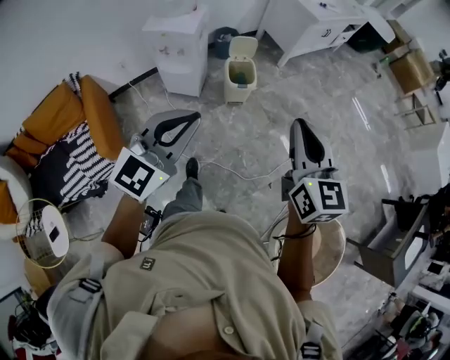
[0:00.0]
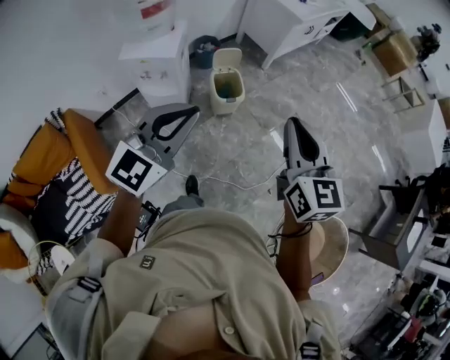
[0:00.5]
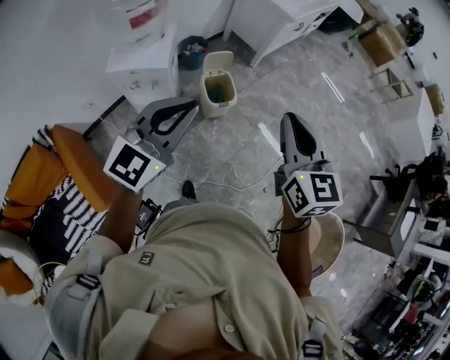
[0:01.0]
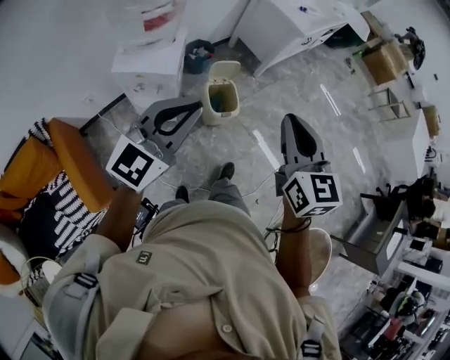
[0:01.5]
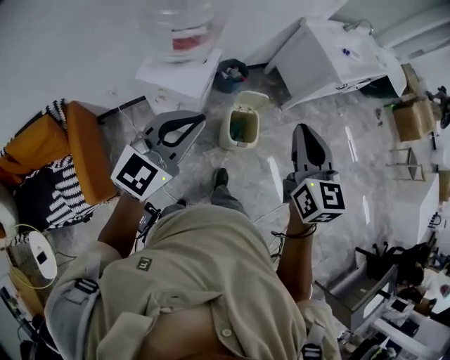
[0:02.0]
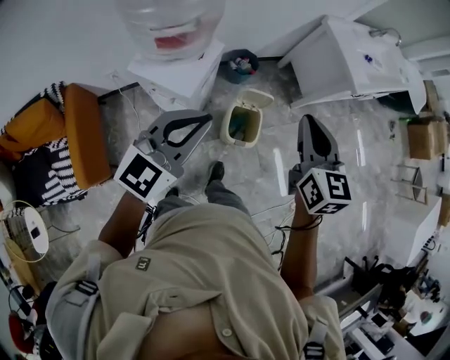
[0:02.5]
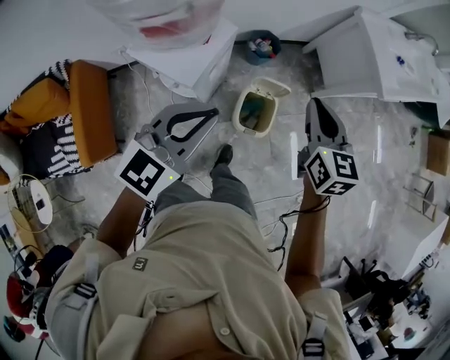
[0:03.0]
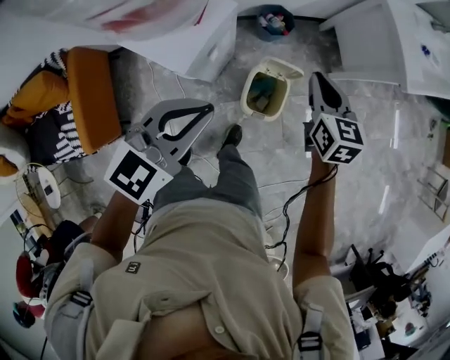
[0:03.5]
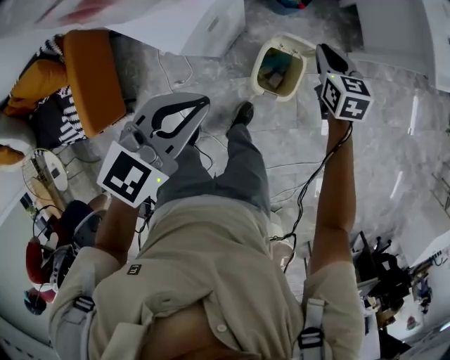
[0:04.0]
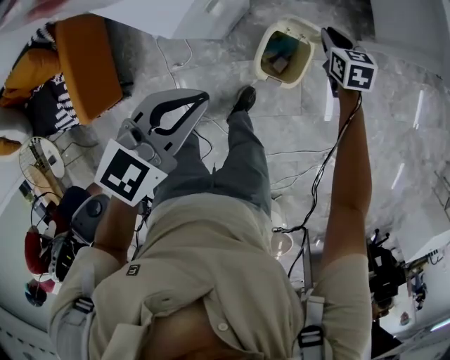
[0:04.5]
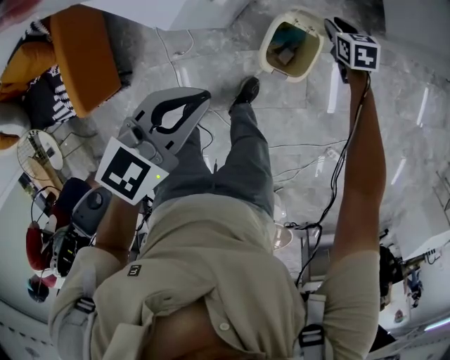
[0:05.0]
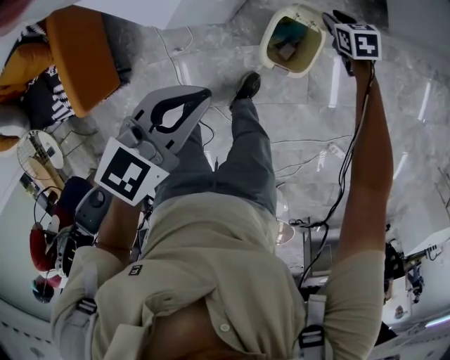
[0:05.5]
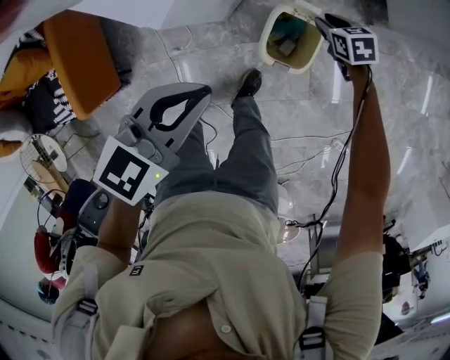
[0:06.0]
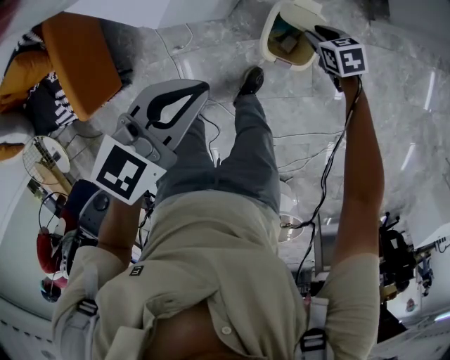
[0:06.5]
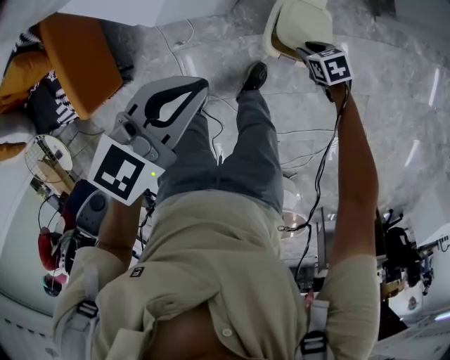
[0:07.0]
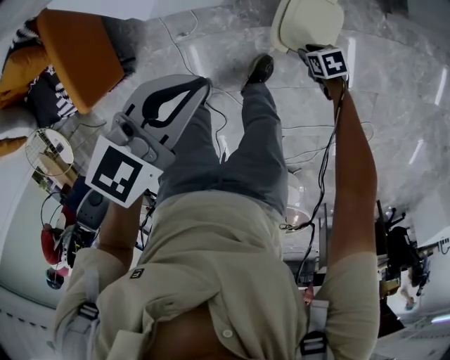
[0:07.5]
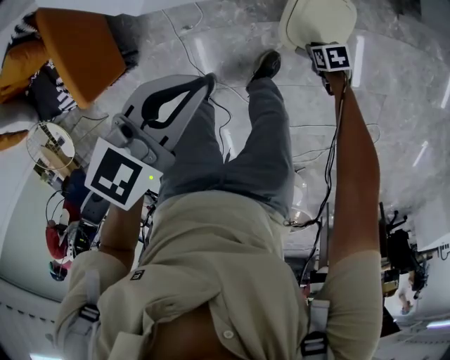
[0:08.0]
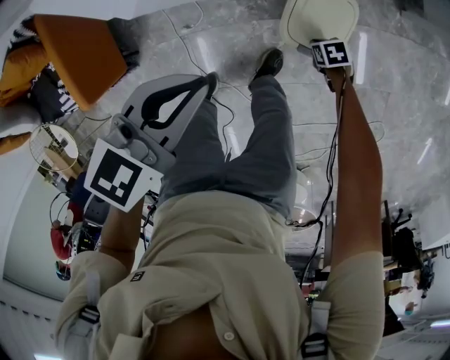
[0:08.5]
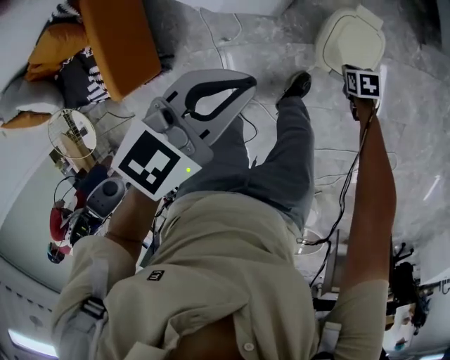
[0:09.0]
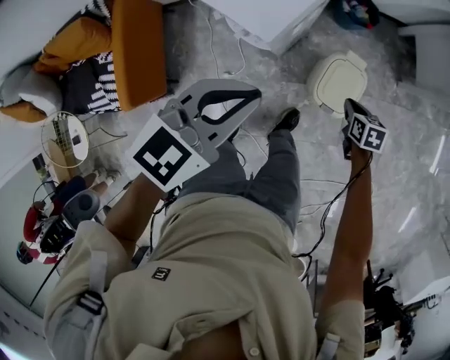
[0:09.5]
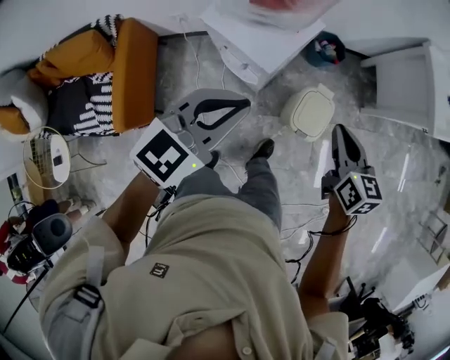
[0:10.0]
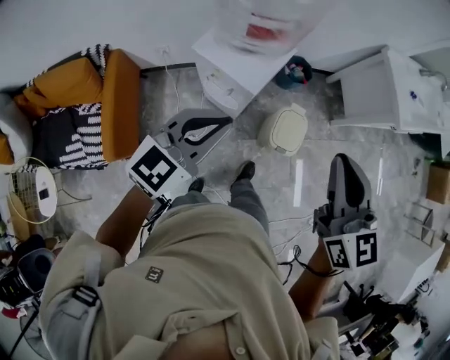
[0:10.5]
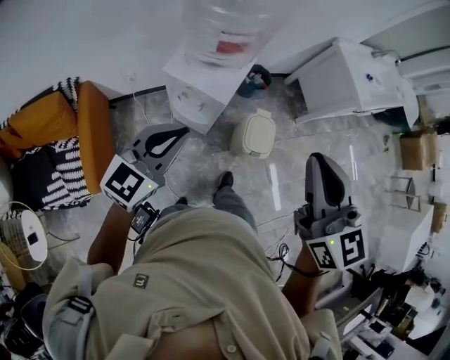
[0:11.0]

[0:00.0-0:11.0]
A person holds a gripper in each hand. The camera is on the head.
0:00.0 to 0:02.0: Both grippers are carried forward and to the left, approximately 40 cm.
0:02.0 to 0:03.5: The left gripper heads forward, downward and to the right, covering some 25 cm, and changes its angle by approximately 20 degrees; the right gripper shifts some 40 cm forward and downward, and swivels approximately 30 degrees.
0:03.5 to 0:05.5: The right gripper travels downward by approximately 35 cm, turns by some 40 degrees, and opens. Meanwhile the left gripper travels downward by about 15 cm.
0:05.5 to 0:07.5: The right gripper moves approximately 25 cm, and turns by approximately 20 degrees.
0:07.5 to 0:09.0: The right gripper closes its fingers.
0:09.0 to 0:11.0: The right gripper travels upward by approximately 80 cm, and angles its fingers upward, by roughly 60 degrees. Meanwhile the left gripper travels upward by approximately 30 cm, and points its fingers approximately 30 degrees further upward.

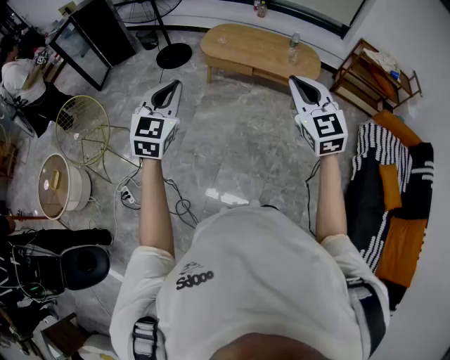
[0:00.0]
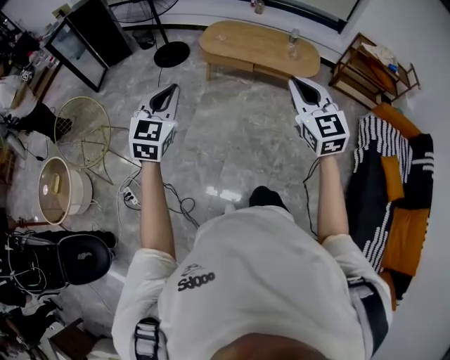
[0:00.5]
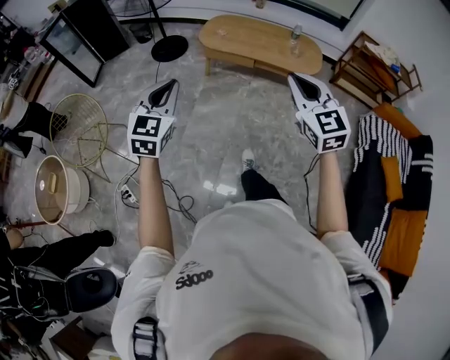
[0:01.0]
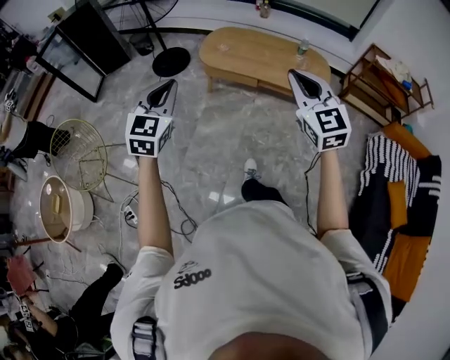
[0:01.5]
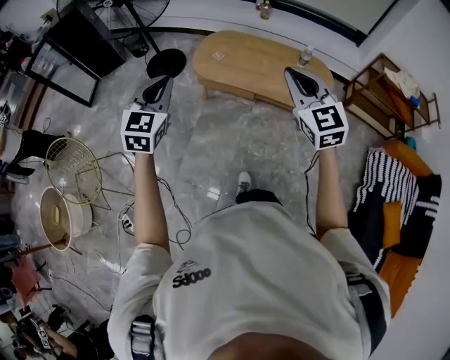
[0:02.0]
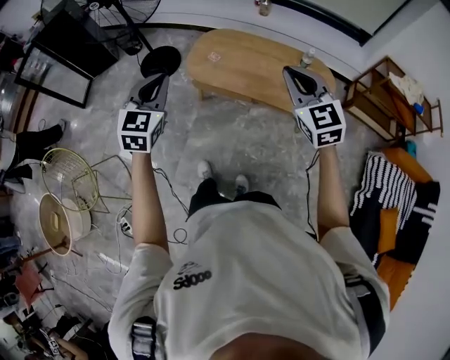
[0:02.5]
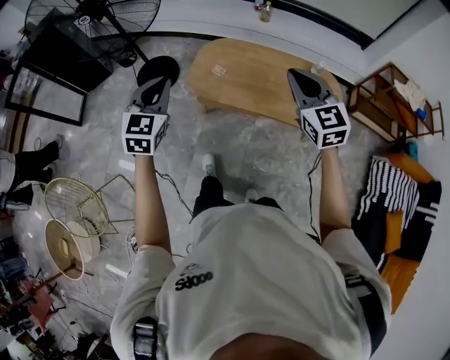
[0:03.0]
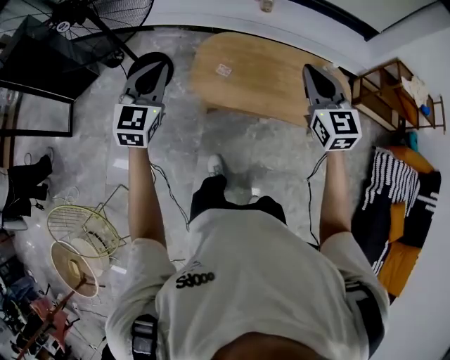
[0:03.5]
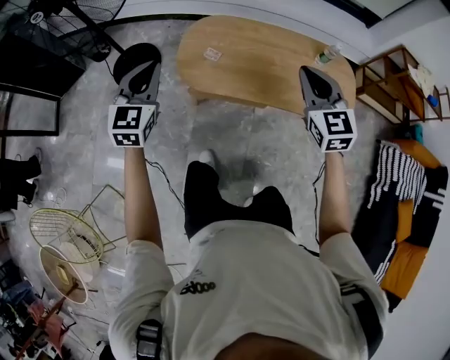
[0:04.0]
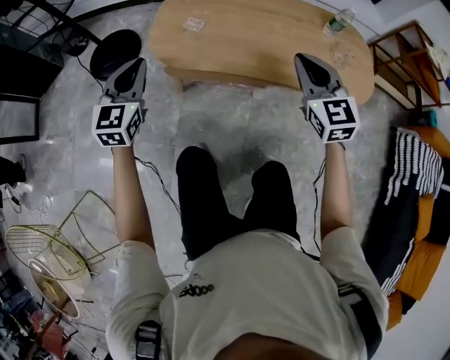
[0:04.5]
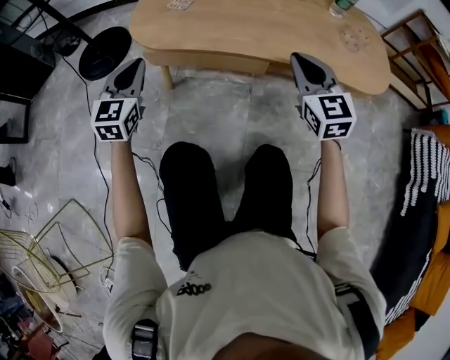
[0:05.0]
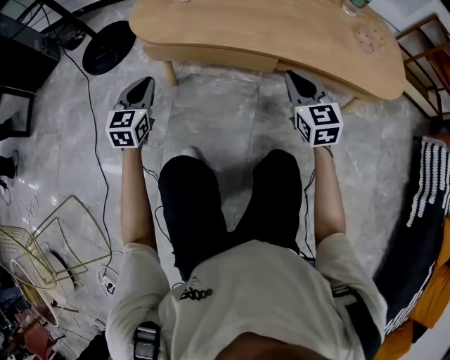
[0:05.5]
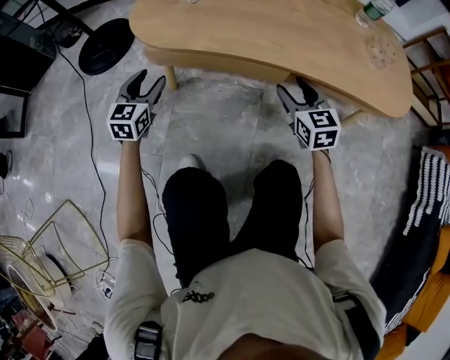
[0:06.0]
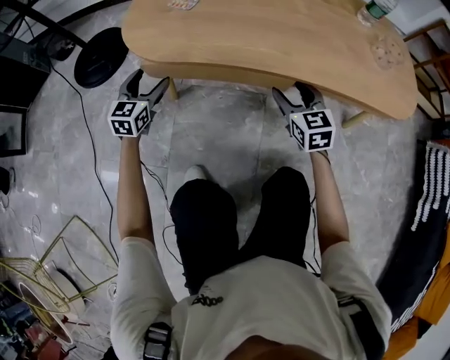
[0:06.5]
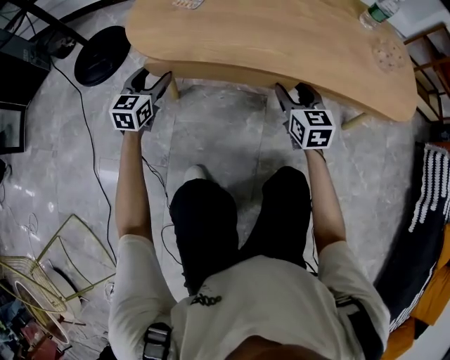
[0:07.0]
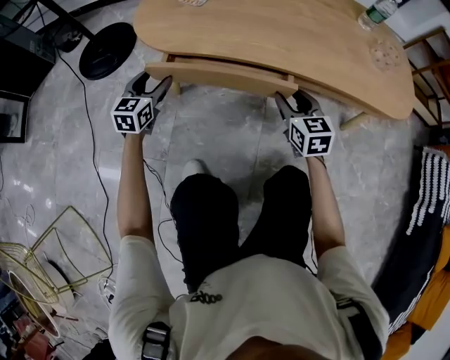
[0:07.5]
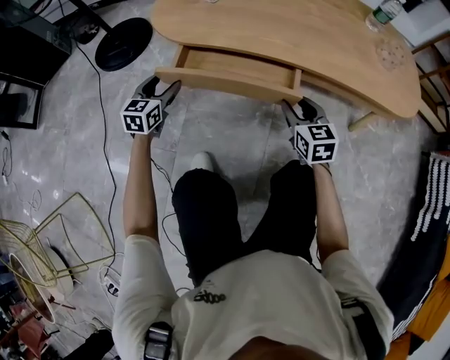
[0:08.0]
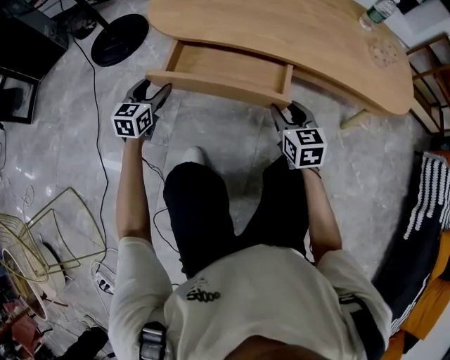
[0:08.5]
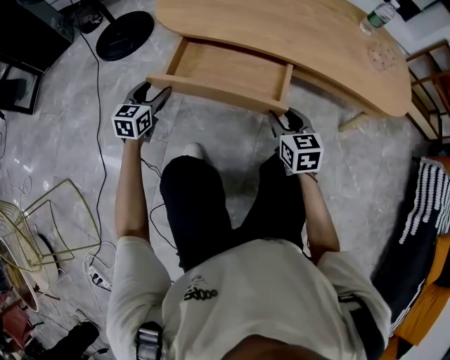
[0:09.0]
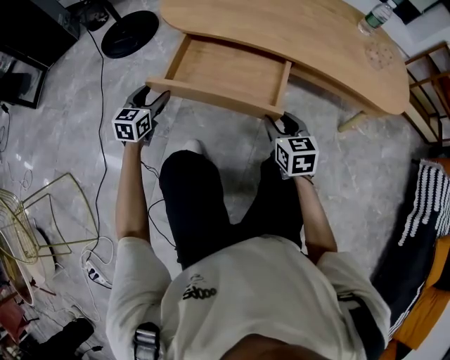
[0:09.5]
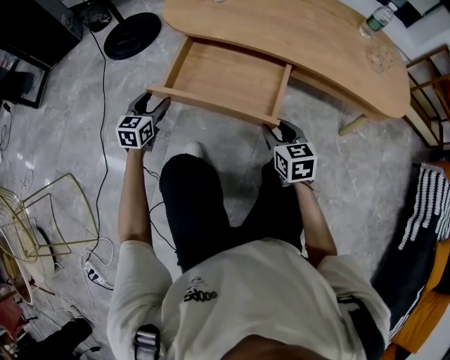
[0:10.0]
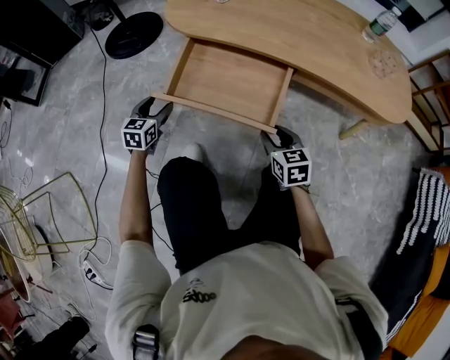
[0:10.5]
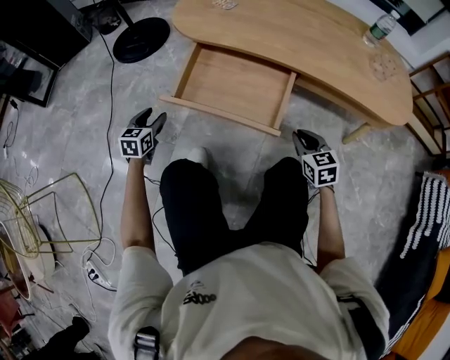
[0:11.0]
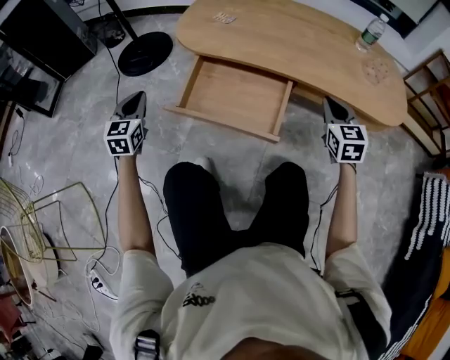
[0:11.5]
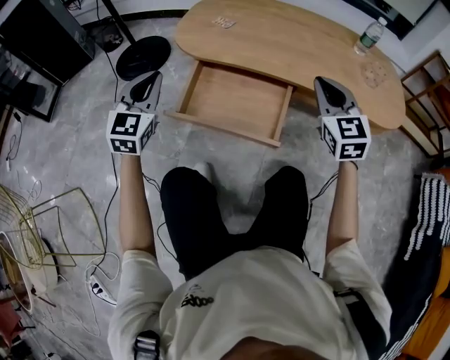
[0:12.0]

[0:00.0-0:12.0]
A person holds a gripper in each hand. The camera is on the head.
0:00.0 to 0:02.0: Both grippers are carried forward, about 40 cm.
0:02.0 to 0:04.0: The grippers both shift forward and downward by roughly 40 cm.
0:04.0 to 0:06.0: The grippers both shift downward by some 50 cm. The right gripper opens its fingers, while the left gripper opens its fingers.
0:06.0 to 0:08.0: The right gripper moves backward, about 5 cm. The left gripper goes forward and returns, some 5 cm each way.
0:08.0 to 0:10.0: The grippers both shift backward by roughly 10 cm.
0:10.0 to 0:12.0: The two grippers go approximately 25 cm upward. The right gripper turns by some 30 degrees, and closes, while the left gripper changes its angle by some 30 degrees, and closes.

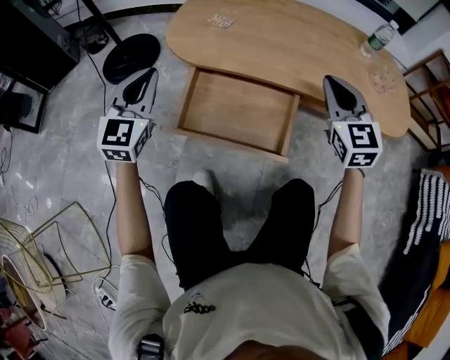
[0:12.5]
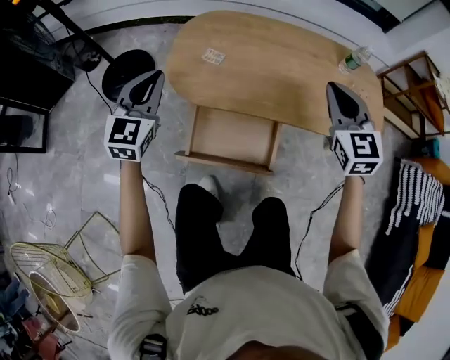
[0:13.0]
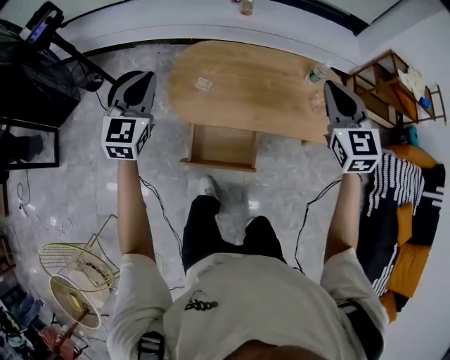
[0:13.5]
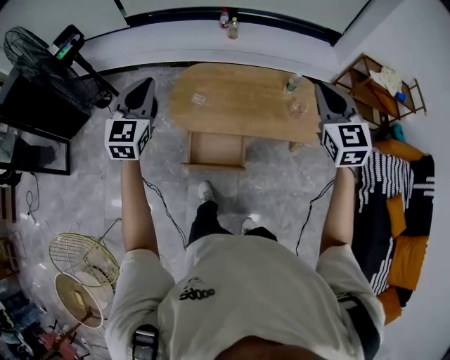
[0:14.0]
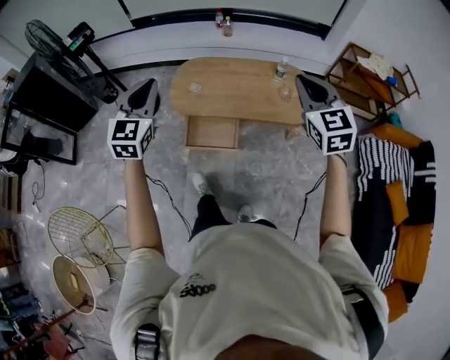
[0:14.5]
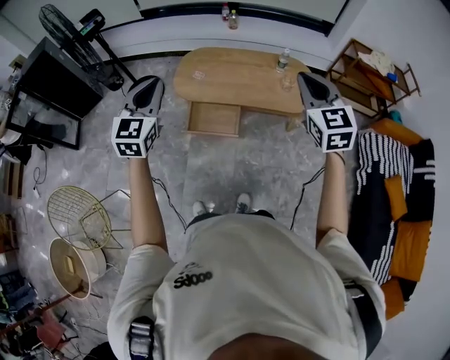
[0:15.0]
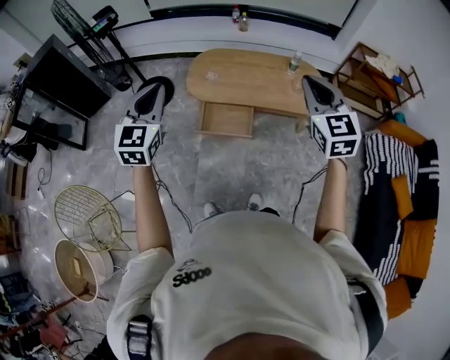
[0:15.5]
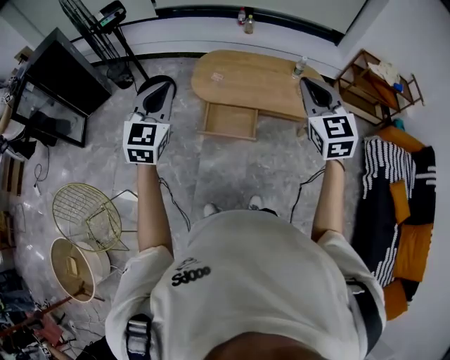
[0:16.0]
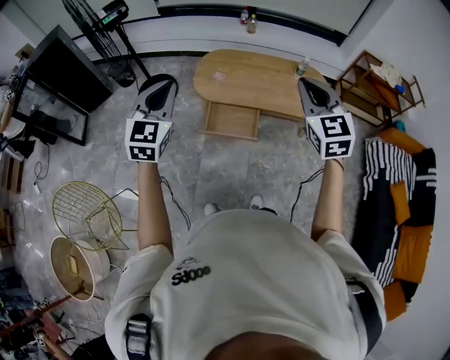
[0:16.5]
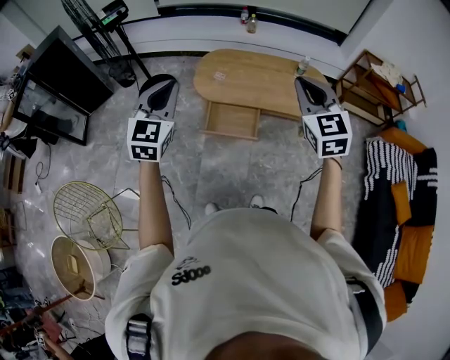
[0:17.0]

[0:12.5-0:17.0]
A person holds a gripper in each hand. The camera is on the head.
0:12.5 to 0:14.5: The two grippers go approximately 60 cm upward.
0:14.5 to 0:17.0: The right gripper goes approximately 15 cm to the left and backward. Meanwhile the left gripper goes some 15 cm backward and to the left.
